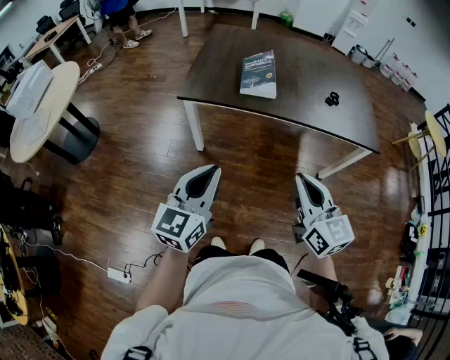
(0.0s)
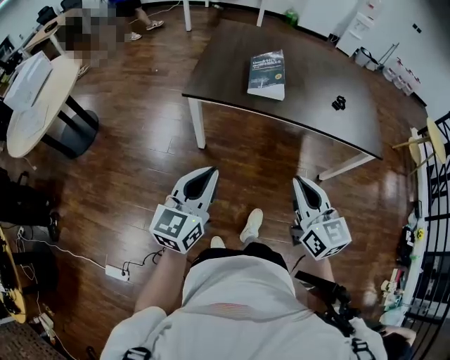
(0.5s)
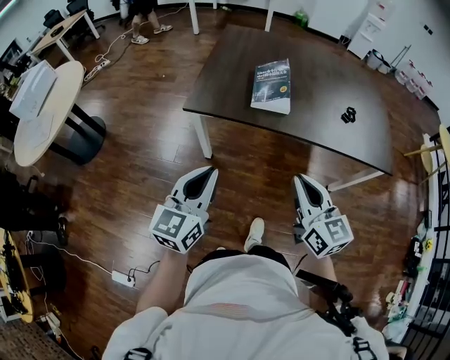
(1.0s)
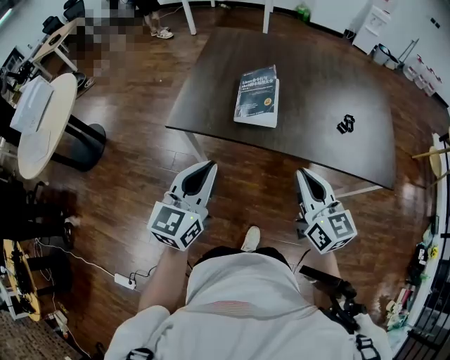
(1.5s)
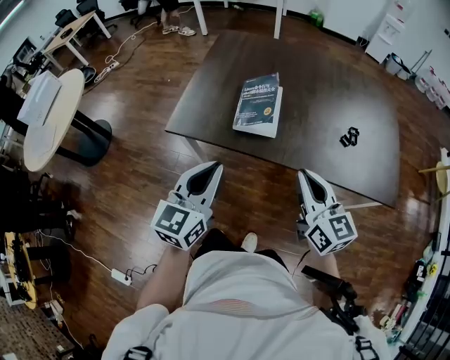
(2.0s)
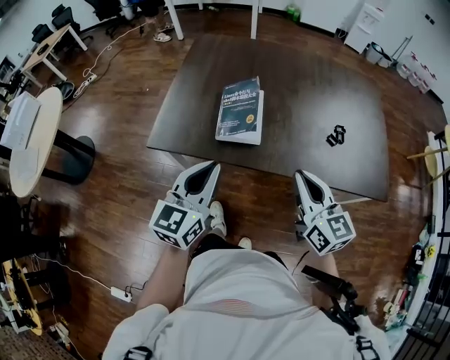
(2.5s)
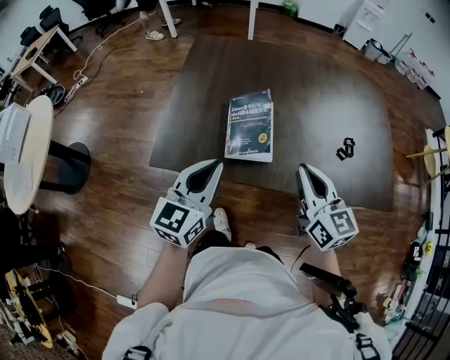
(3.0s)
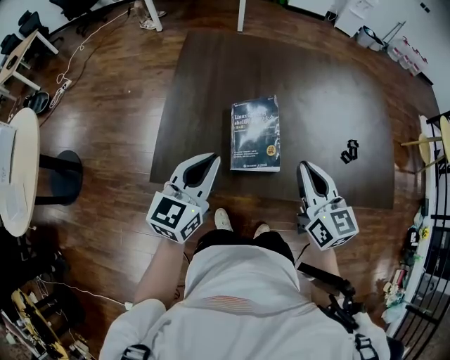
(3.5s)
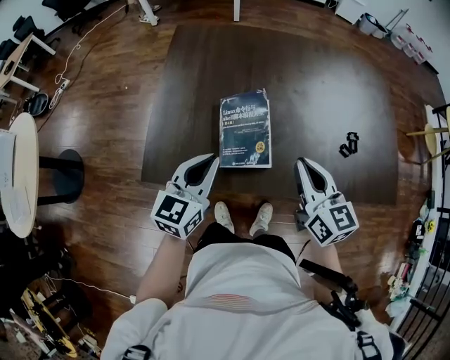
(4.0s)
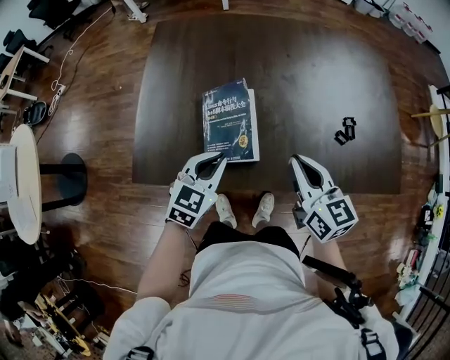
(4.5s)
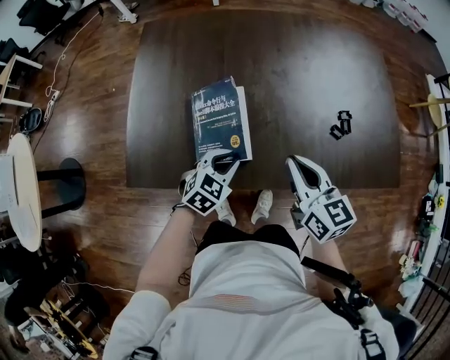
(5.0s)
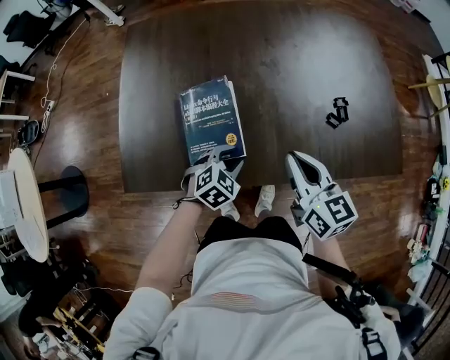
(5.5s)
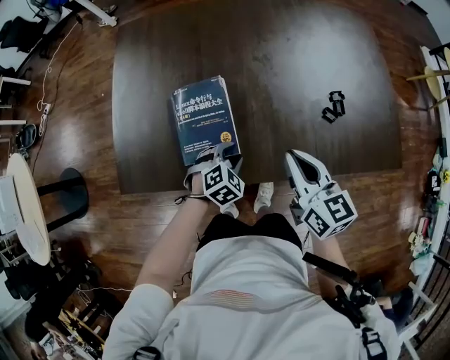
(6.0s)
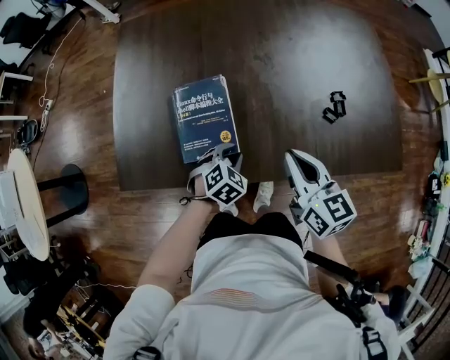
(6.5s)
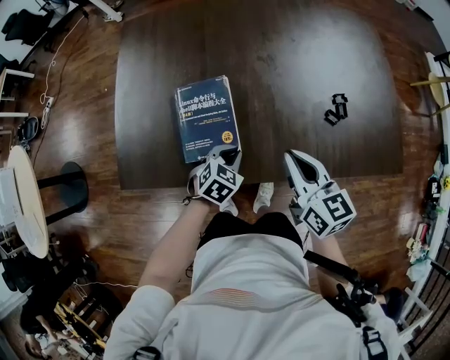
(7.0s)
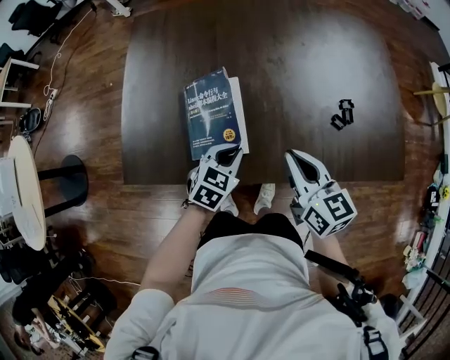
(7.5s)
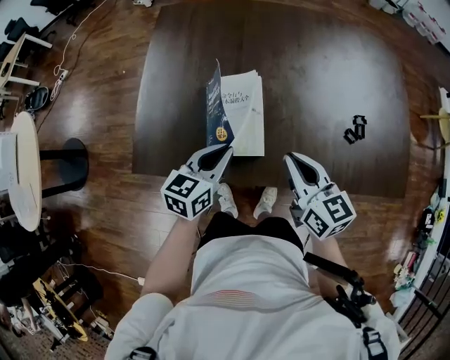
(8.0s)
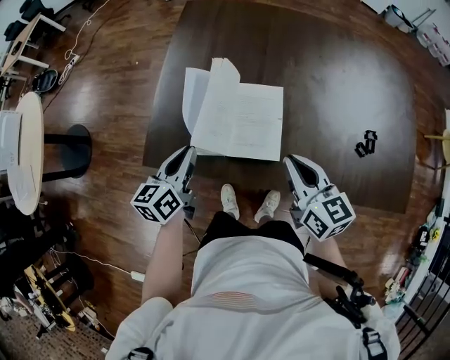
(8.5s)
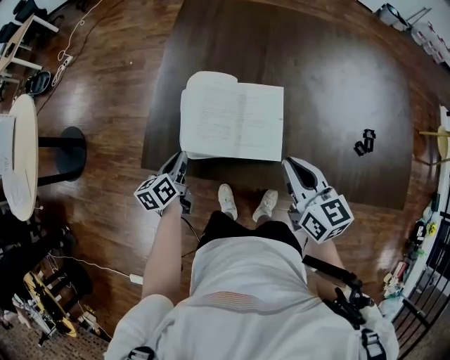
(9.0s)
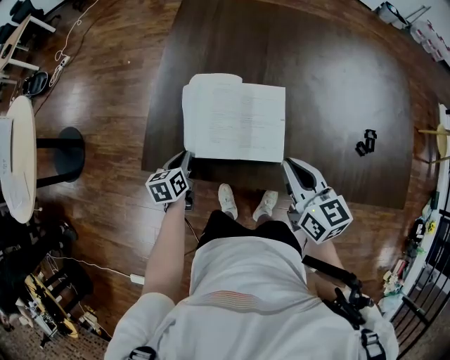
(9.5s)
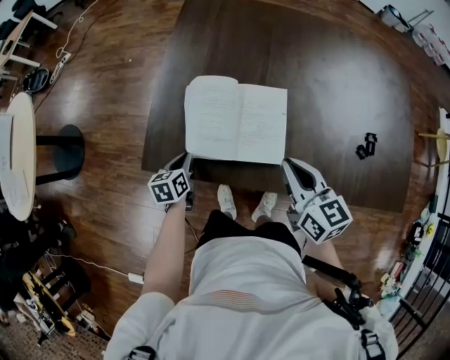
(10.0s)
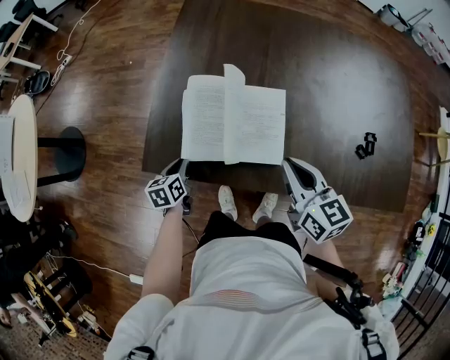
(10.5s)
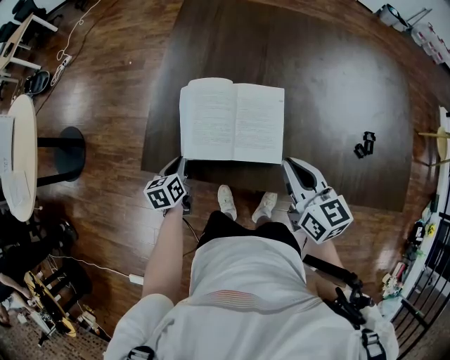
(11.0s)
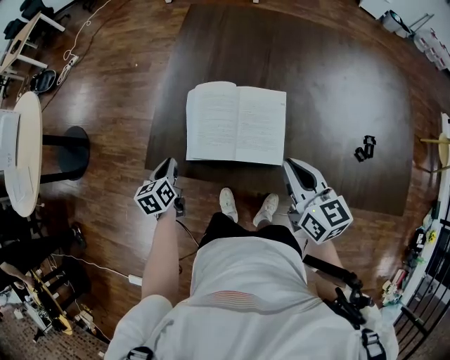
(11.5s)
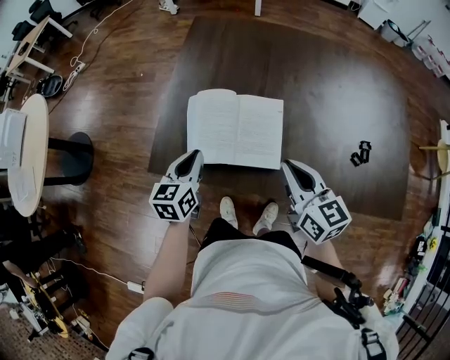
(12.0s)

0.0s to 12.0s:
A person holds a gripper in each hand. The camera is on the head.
0.0s to 2.0s: The grippers both shift forward by approximately 30 cm.
2.0s to 4.0s: The grippers both shift forward by some 25 cm.
4.0s to 6.0s: The left gripper moves downward and to the right, about 30 cm, angles its fingers downward, by roughly 40 degrees, and opens. The right gripper moves to the right and downward, approximately 10 cm.
6.0s to 8.0s: The right gripper goes approximately 5 cm to the left. Meanwhile the left gripper travels upward and to the left by some 15 cm, rolls counterclockwise, seen from behind, by some 50 degrees, and closes its fingers.
8.0s to 10.0s: The left gripper moves to the left and downward, approximately 25 cm, and swivels about 40 degrees; the right gripper is displaced to the left by some 10 cm.
10.0s to 12.0s: The right gripper moves roughly 5 cm, while the left gripper goes about 15 cm upward, and turns by about 20 degrees.

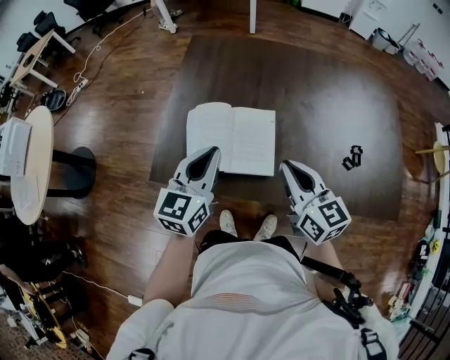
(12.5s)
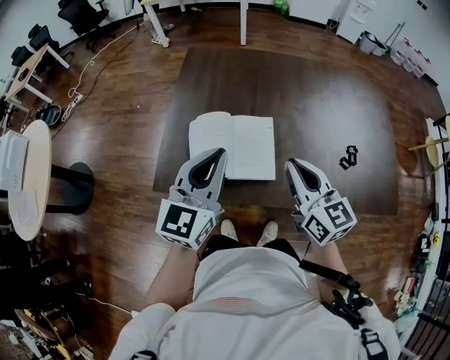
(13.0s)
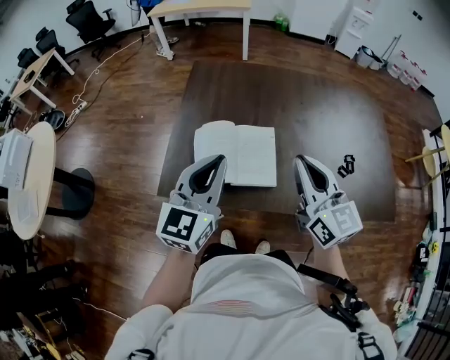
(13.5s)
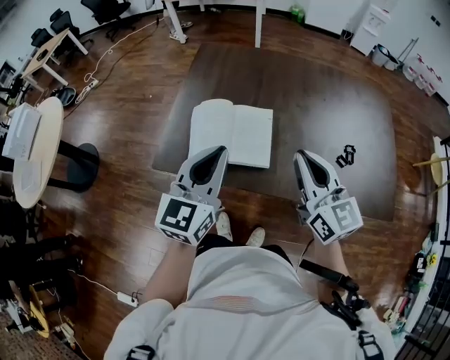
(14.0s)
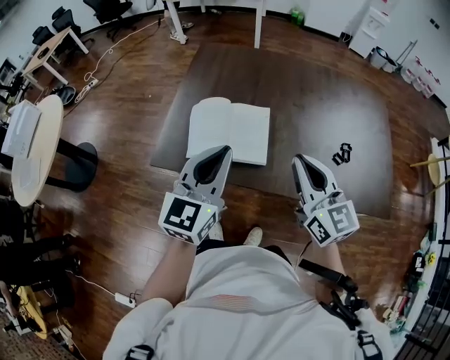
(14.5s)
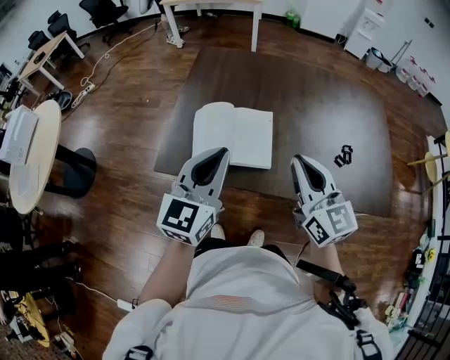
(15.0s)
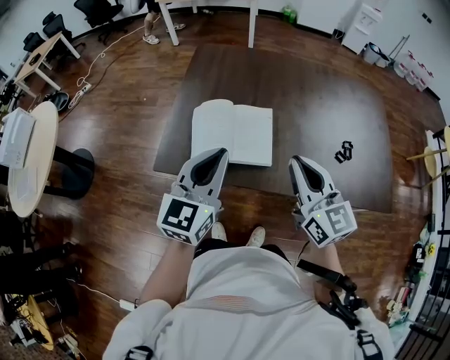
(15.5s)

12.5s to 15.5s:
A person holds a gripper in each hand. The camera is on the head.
12.5s to 14.0s: The left gripper moves backward and upward, about 15 cm. The right gripper goes about 15 cm upward, backward and to the right.
14.0s to 15.5s: Both grippers move to the left, approximately 5 cm.

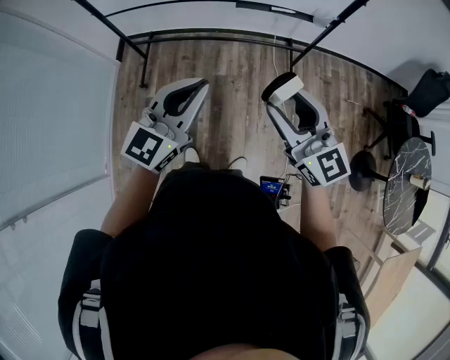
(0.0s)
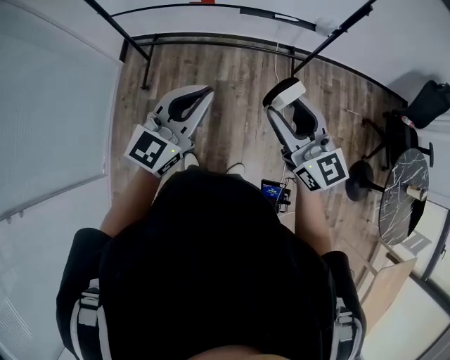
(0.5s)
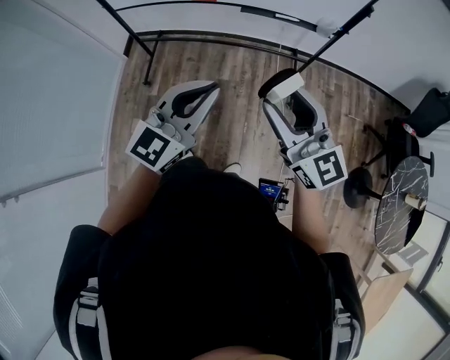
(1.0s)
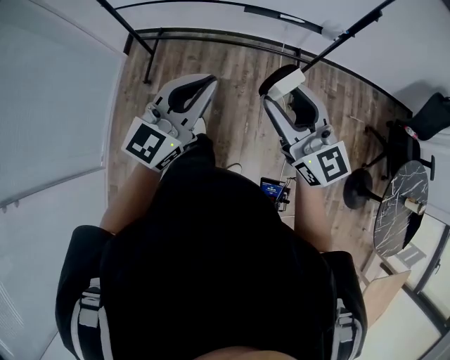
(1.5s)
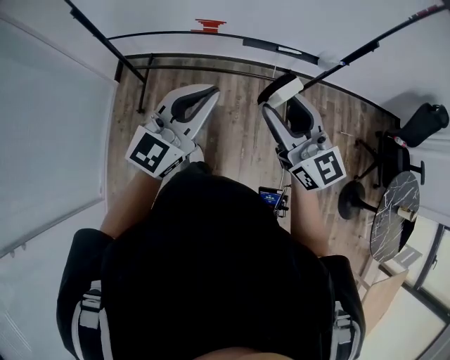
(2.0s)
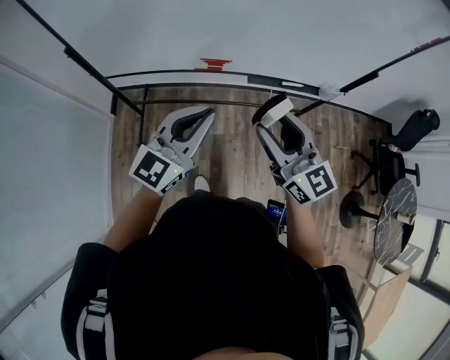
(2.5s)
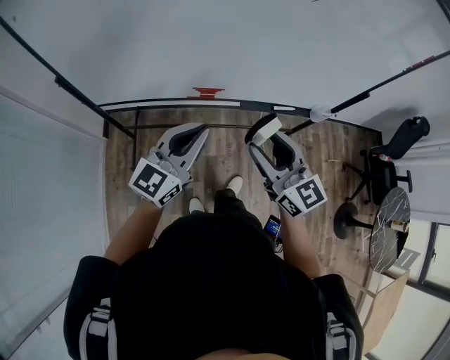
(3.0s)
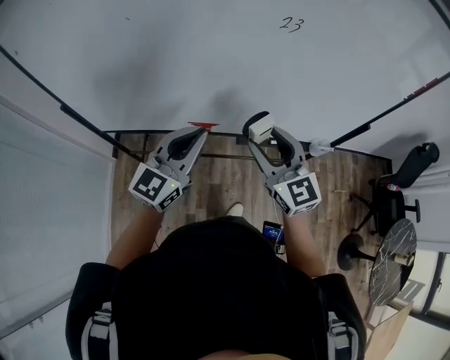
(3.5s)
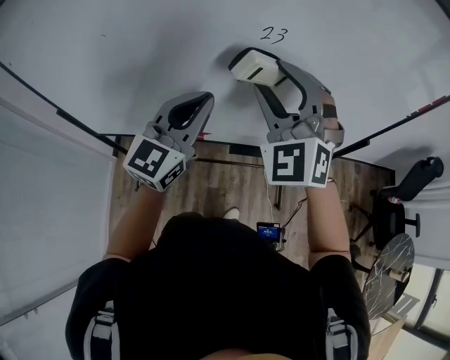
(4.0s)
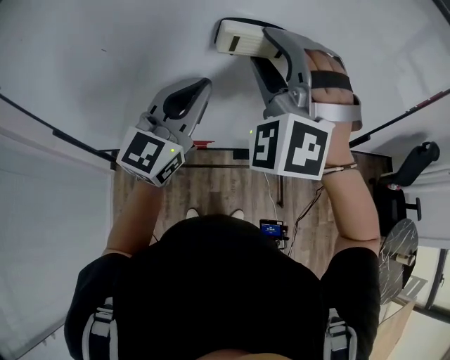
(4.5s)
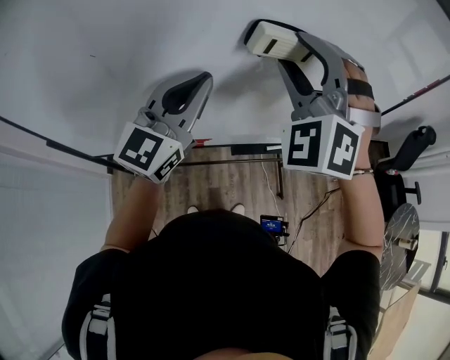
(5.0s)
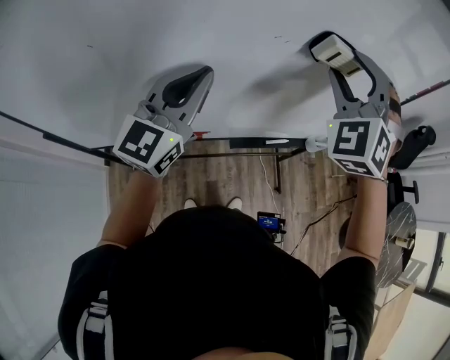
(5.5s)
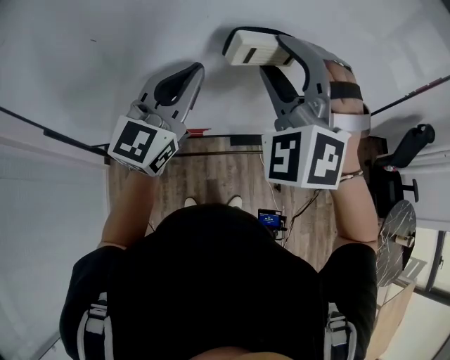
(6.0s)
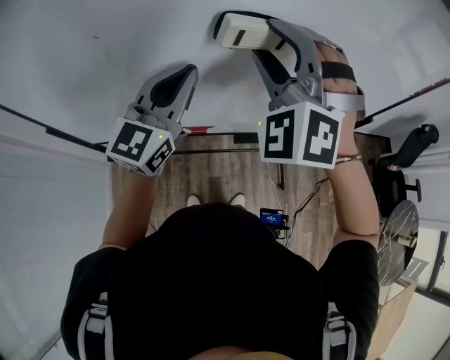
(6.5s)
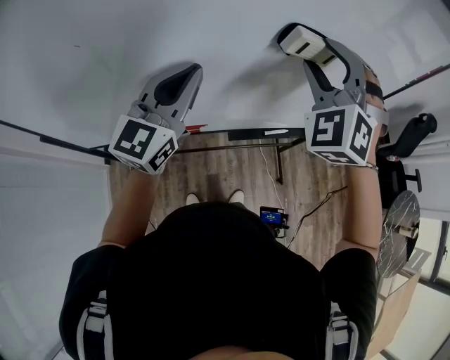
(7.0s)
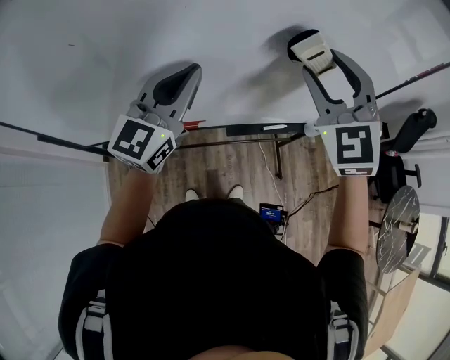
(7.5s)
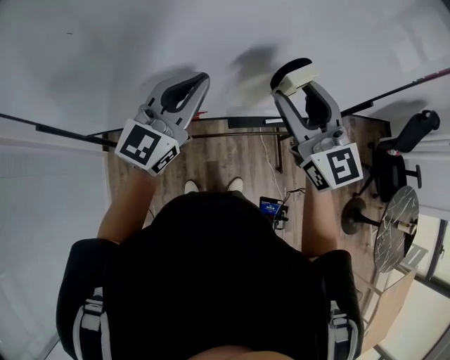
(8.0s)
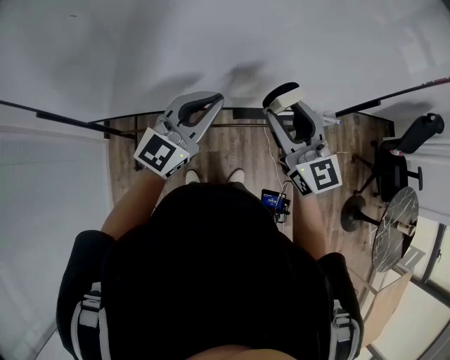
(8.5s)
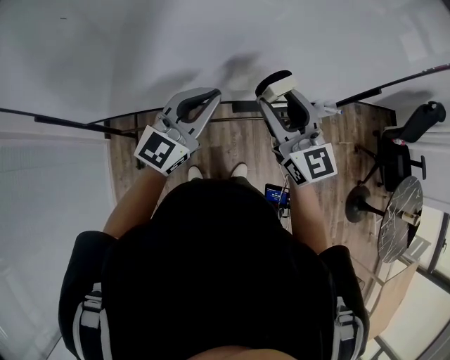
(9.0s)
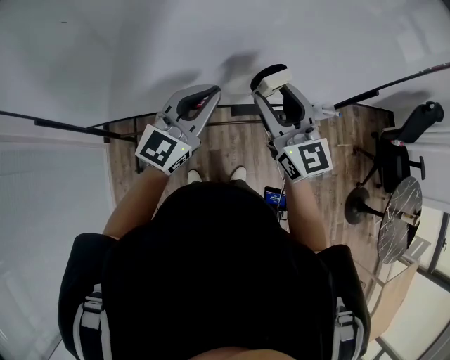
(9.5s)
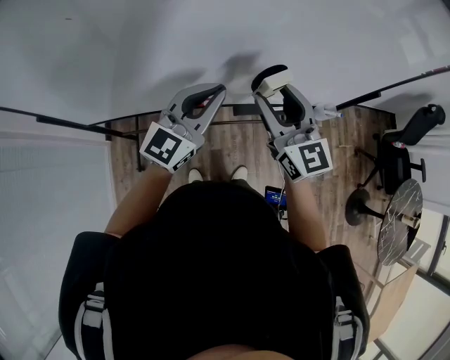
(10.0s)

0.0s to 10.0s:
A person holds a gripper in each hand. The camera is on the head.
0.0s to 2.0s: The grippers both shift forward by about 15 cm.
2.0s to 4.0s: The right gripper is displaced forward and upward by about 40 cm, and rolls counterclockwise, seen from behind, by approximately 60 degrees; the left gripper heads forward, covering some 35 cm.
4.0s to 6.0s: The right gripper goes left and right, approximately 15 cm each way, reversing 2 times, and turns by approximately 20 degrees; the left gripper goes roughly 5 cm to the left.
6.0s to 8.0s: The left gripper is displaced downward by roughly 5 cm. The right gripper shifts roughly 15 cm downward and to the right, and rotates around the line of its fingers by approximately 70 degrees, clockwise from behind.
8.0s to 10.0s: The two grippers go approximately 5 cm downward.

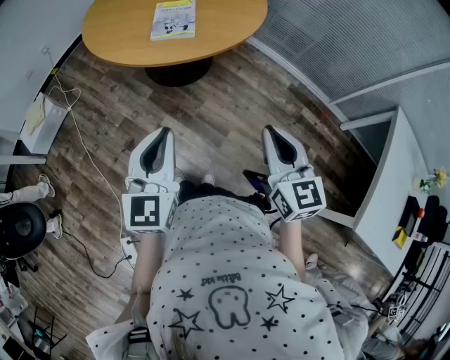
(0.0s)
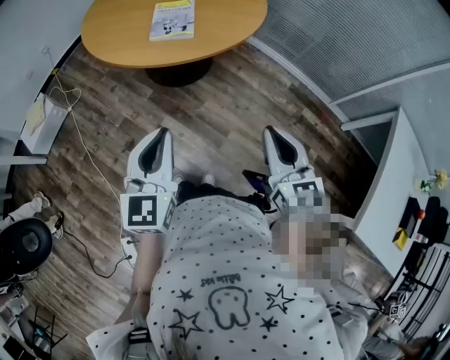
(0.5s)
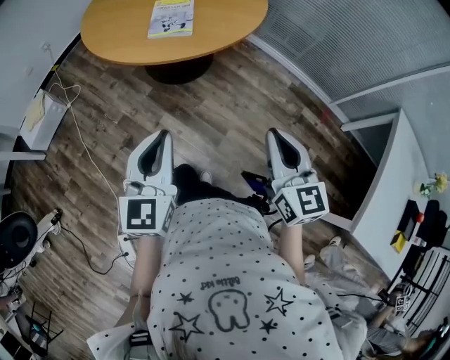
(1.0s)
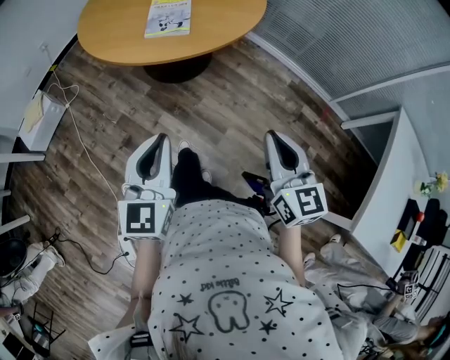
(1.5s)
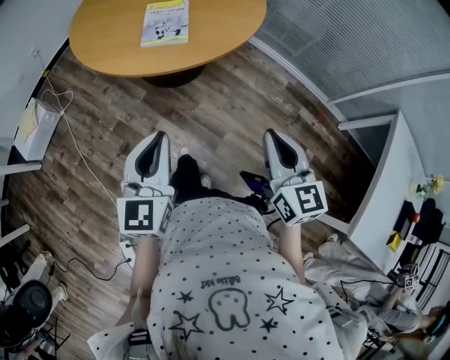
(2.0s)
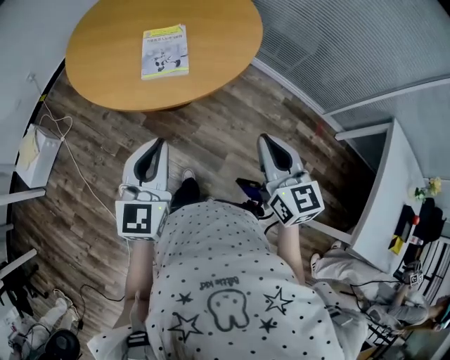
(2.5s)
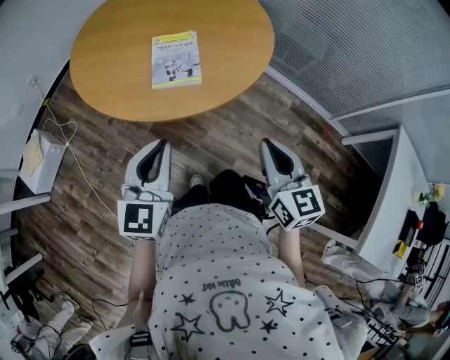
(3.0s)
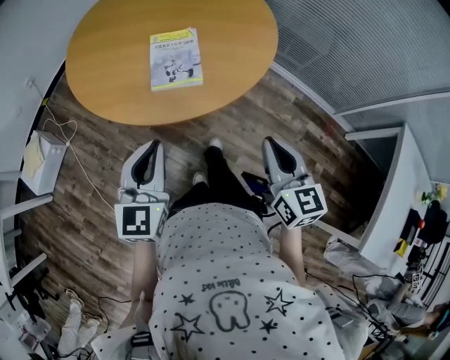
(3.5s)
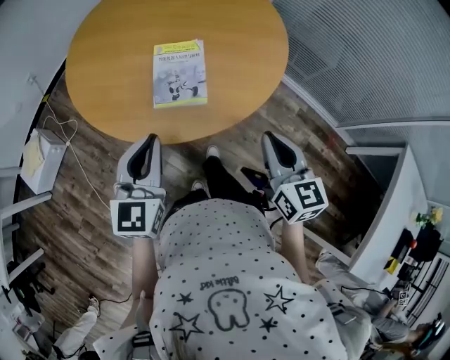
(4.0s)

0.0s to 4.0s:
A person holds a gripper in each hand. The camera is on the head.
0.0s to 2.0s: The two grippers go roughly 5 cm forward.
2.0s to 4.0s: Both grippers travel together forward, some 25 cm.
